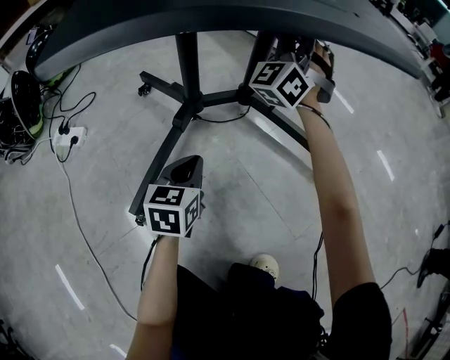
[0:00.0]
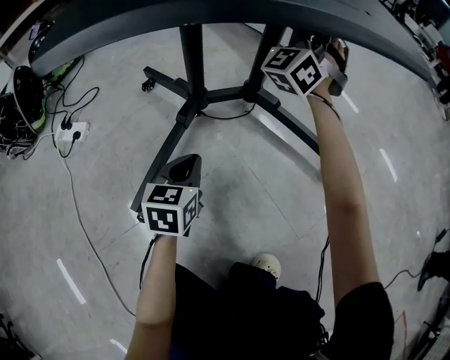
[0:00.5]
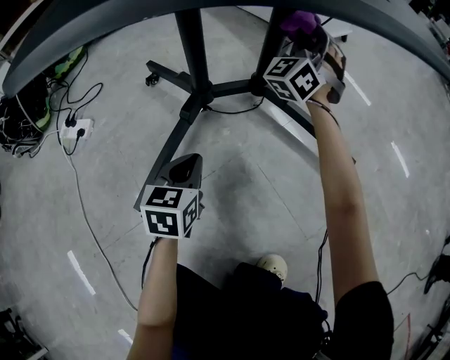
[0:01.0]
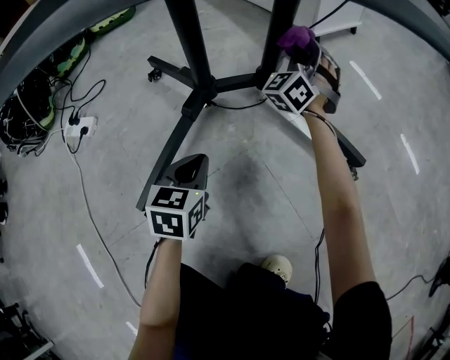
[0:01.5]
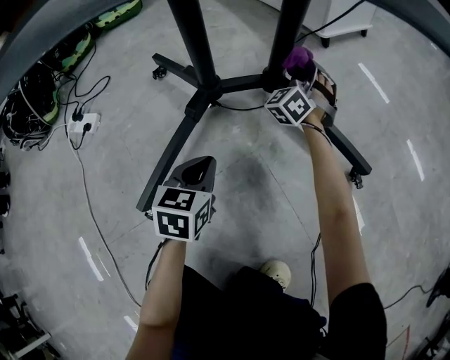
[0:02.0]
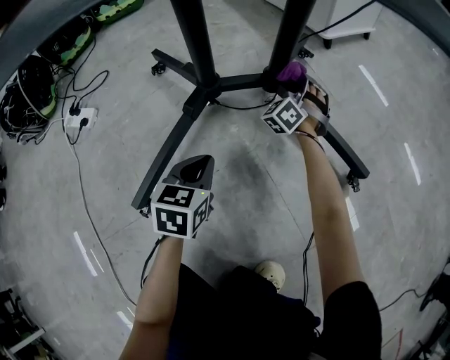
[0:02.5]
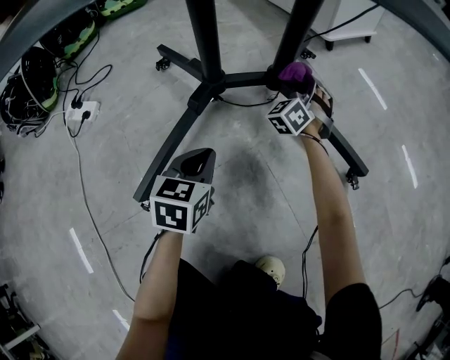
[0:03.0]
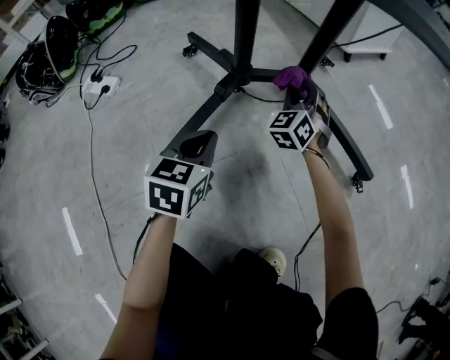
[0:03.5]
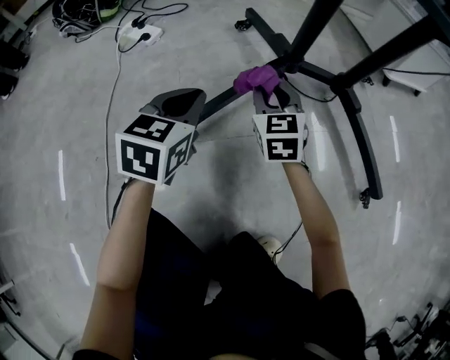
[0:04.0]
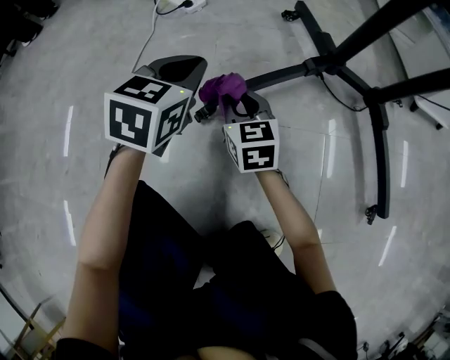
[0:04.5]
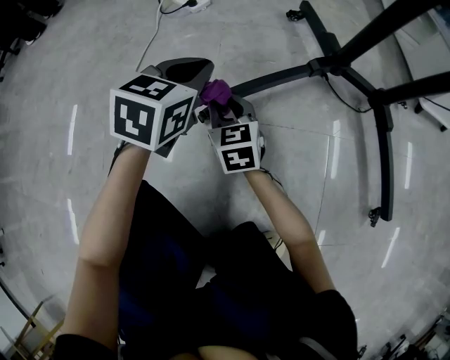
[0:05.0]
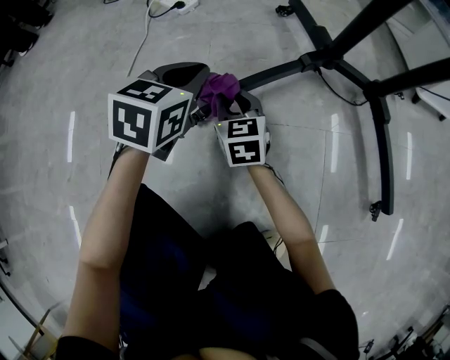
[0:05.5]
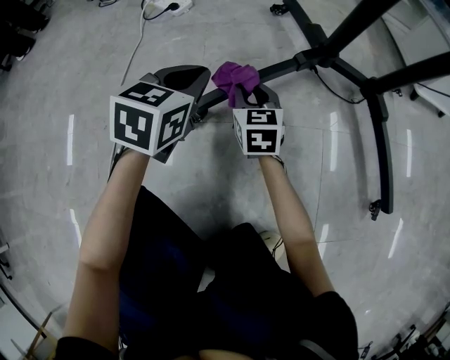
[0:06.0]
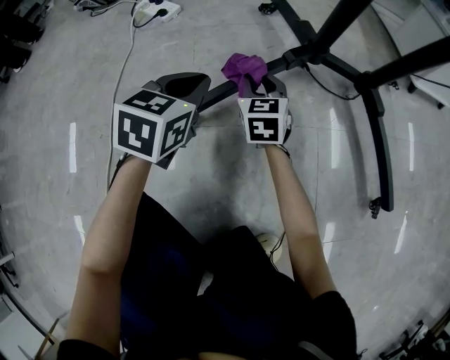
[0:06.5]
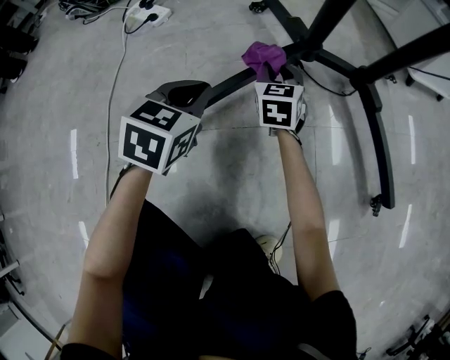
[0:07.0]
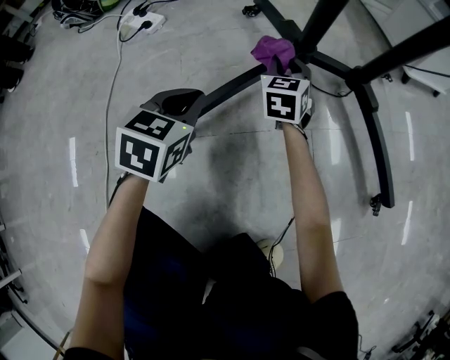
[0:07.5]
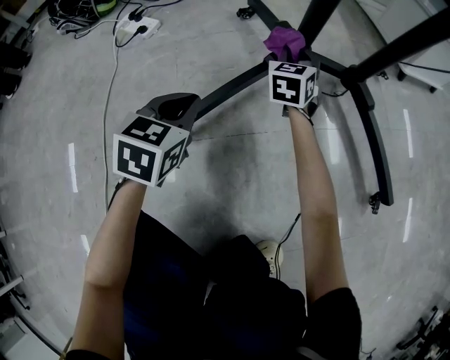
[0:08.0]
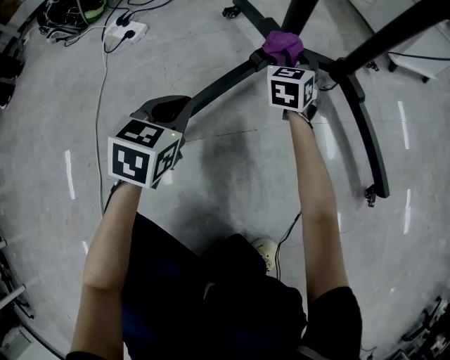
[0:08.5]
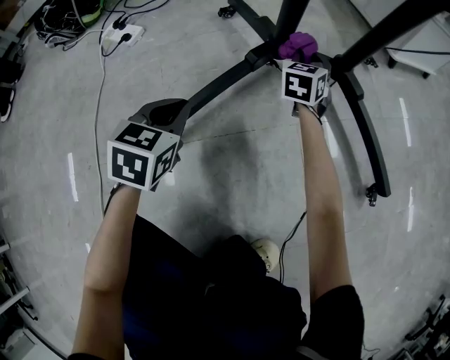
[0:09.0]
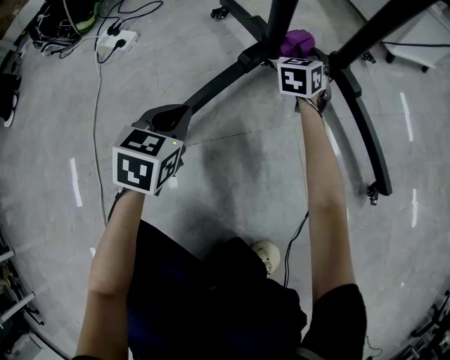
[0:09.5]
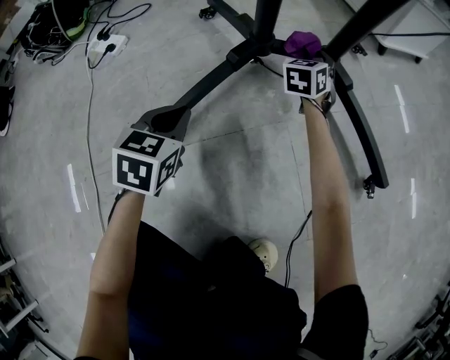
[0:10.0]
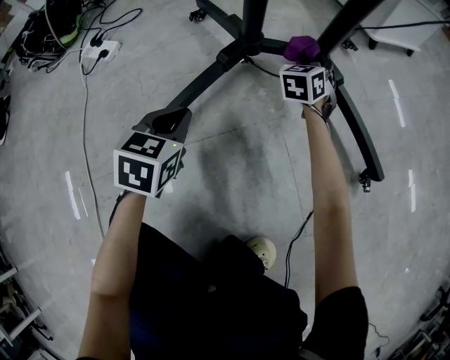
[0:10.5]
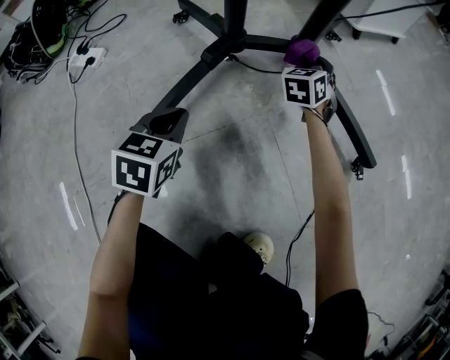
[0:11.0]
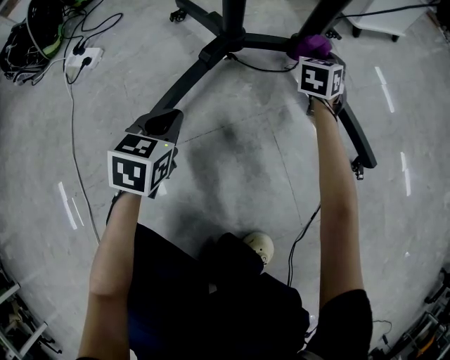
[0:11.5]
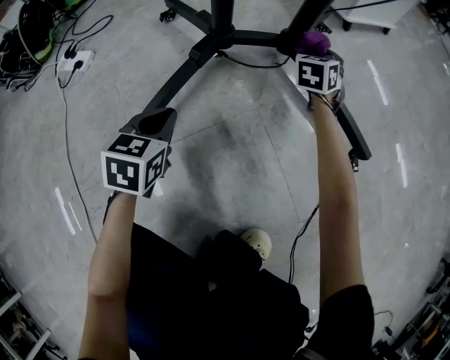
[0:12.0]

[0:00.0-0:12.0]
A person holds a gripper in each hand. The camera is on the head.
0:00.0 to 0:02.0: The right gripper moves downward, about 25 cm, and turns by roughly 20 degrees, while the left gripper moves downward, about 5 cm.
0:02.0 to 0:04.0: The right gripper moves about 40 cm, and rotates approximately 70 degrees, while the left gripper moves some 20 cm.
0:04.0 to 0:06.0: The right gripper shifts about 15 cm to the left and downward.
0:06.0 to 0:08.0: The left gripper shifts about 5 cm to the right; the right gripper shifts approximately 25 cm forward and to the right, and changes its angle by roughly 30 degrees.
0:08.0 to 0:10.0: The right gripper is displaced to the right and forward by some 15 cm, while the left gripper heads to the right, covering some 5 cm.
0:10.0 to 0:12.0: The right gripper shifts about 15 cm to the right.

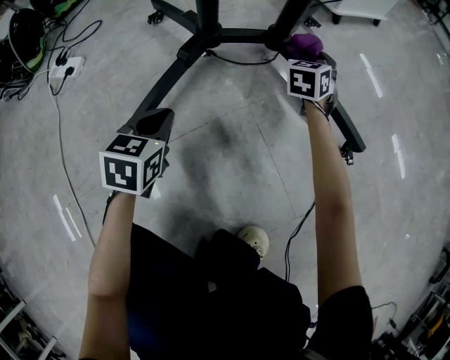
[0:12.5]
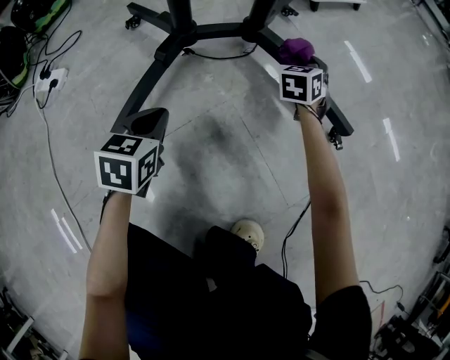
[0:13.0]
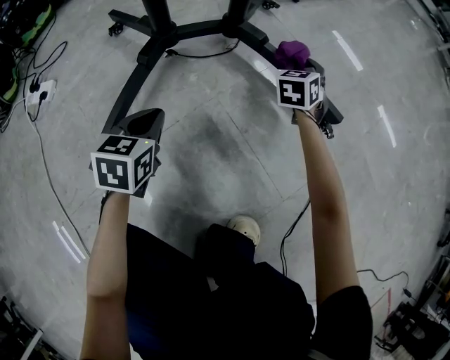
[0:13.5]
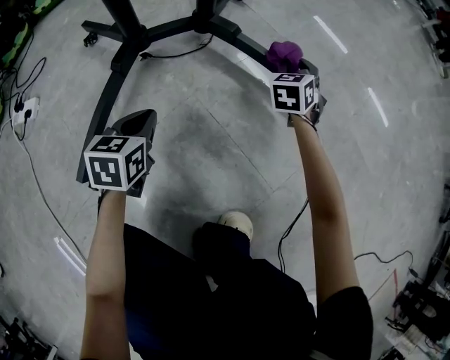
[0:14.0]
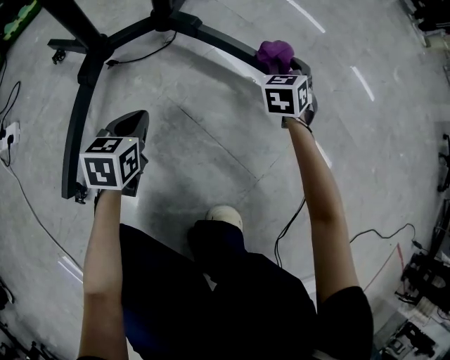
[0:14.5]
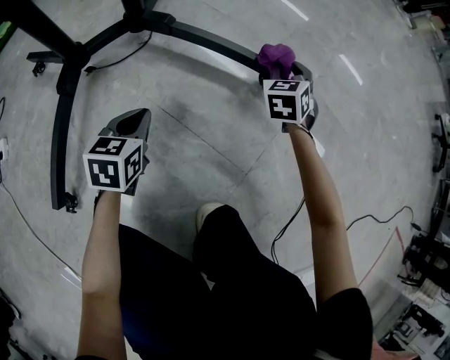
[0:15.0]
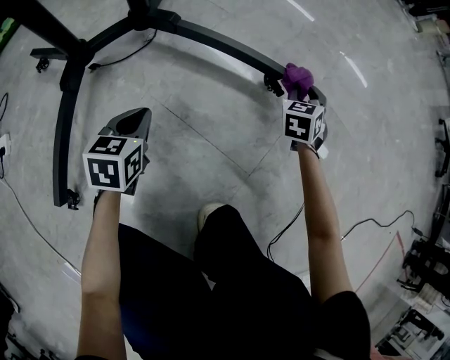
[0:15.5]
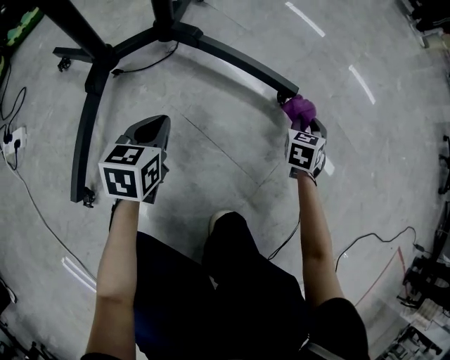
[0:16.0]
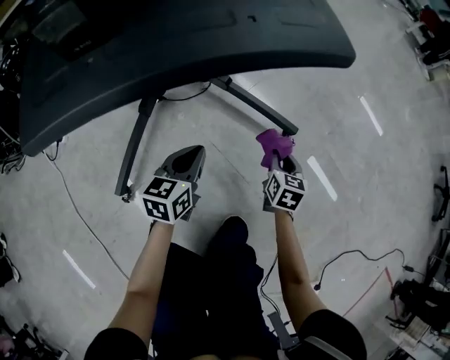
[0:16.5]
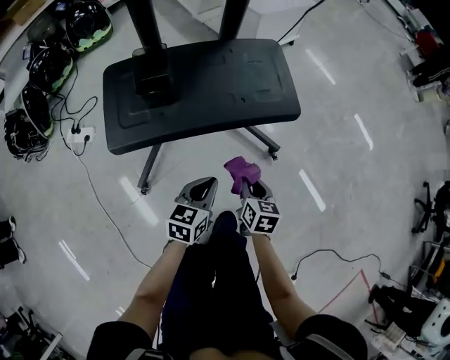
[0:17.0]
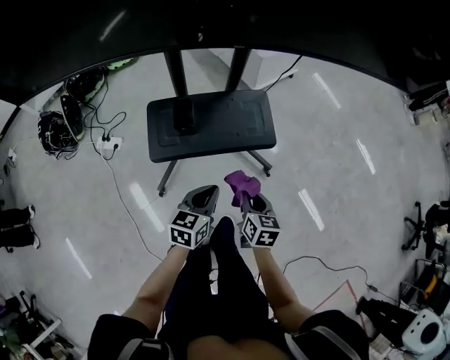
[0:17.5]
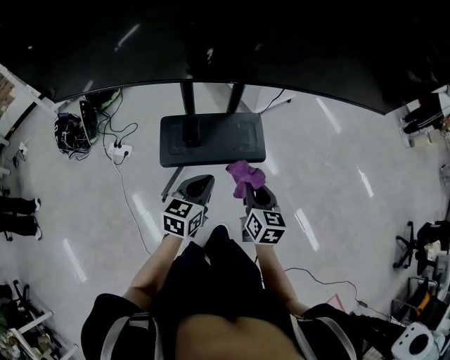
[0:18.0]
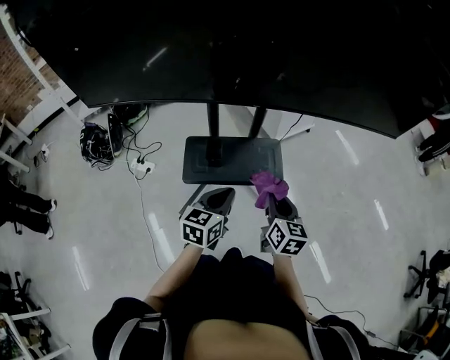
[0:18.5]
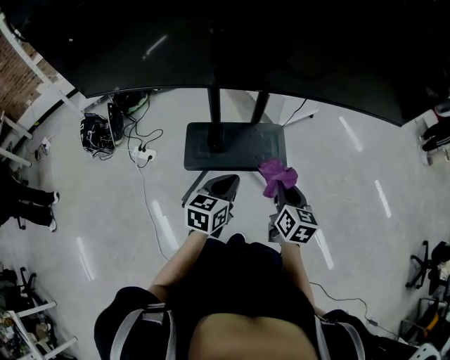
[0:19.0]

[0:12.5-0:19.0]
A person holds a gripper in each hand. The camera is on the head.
0:12.5 to 0:14.5: The left gripper goes roughly 15 cm to the right and forward; the right gripper goes roughly 25 cm to the right.
0:14.5 to 0:17.0: The right gripper moves backward and upward, about 40 cm, and swivels roughly 40 degrees; the left gripper heads upward, covering about 35 cm.
0:17.0 to 0:19.0: The two grippers go approximately 40 cm upward. The right gripper turns by approximately 20 degrees.

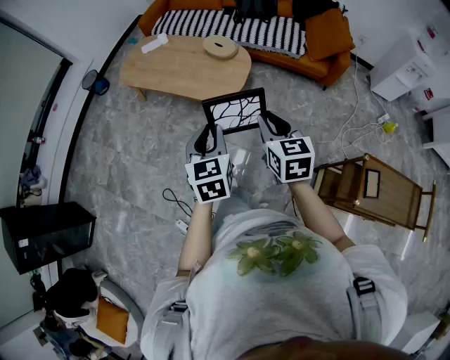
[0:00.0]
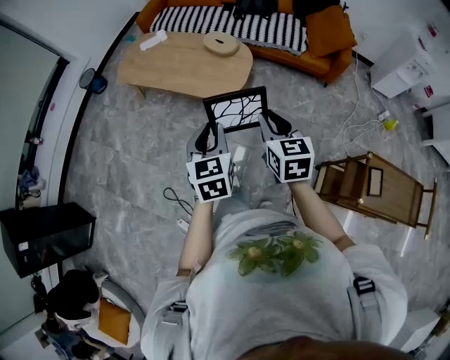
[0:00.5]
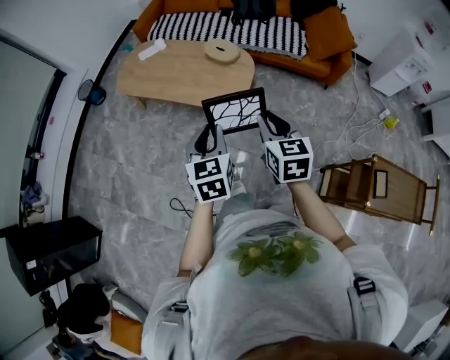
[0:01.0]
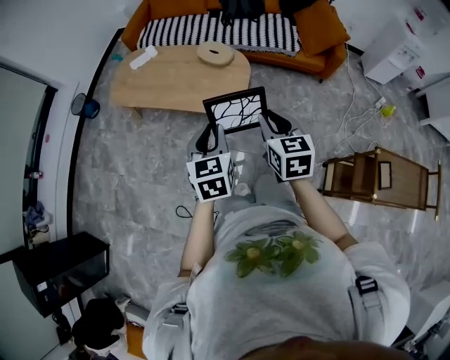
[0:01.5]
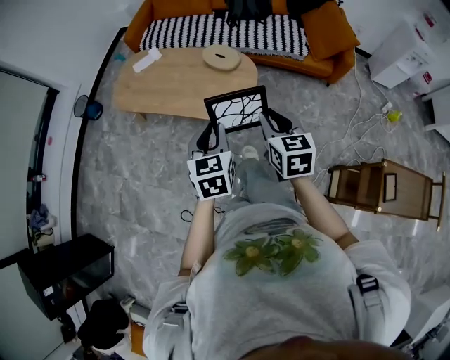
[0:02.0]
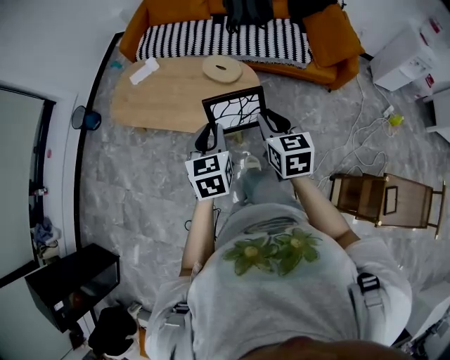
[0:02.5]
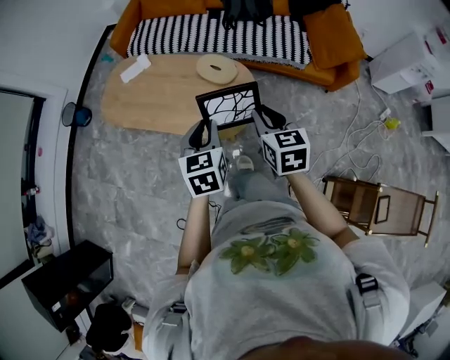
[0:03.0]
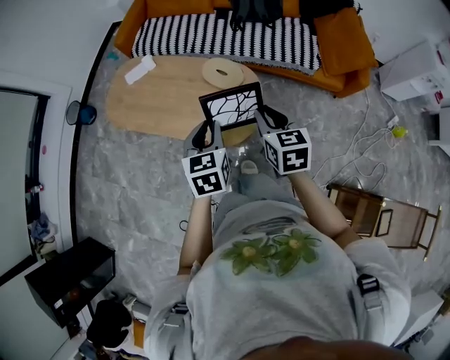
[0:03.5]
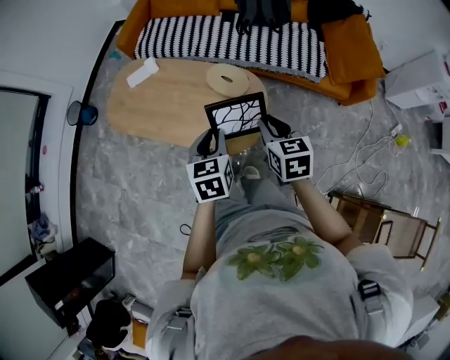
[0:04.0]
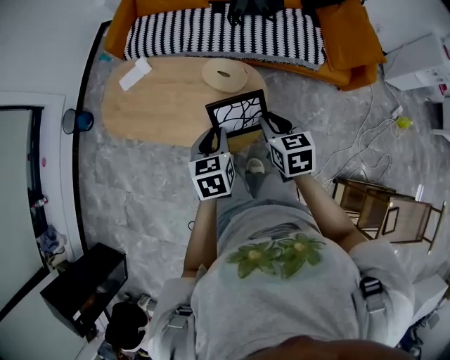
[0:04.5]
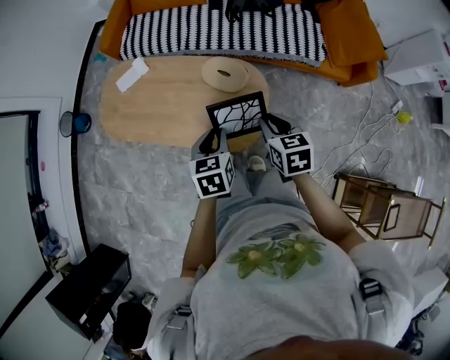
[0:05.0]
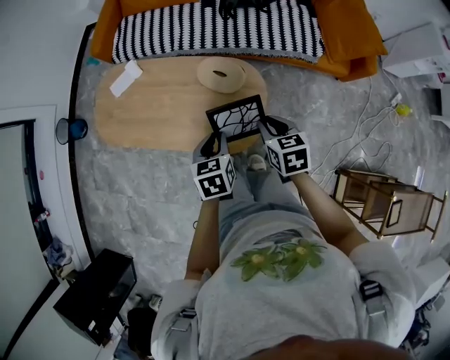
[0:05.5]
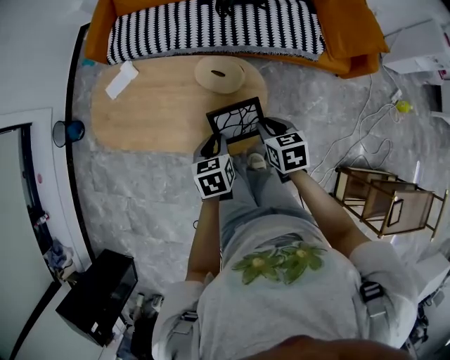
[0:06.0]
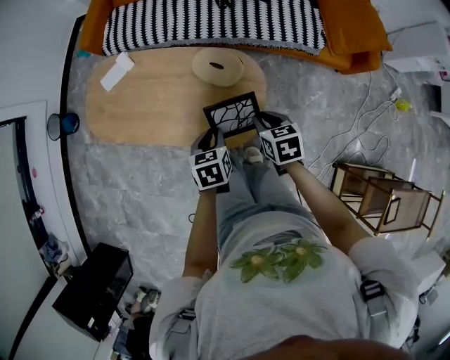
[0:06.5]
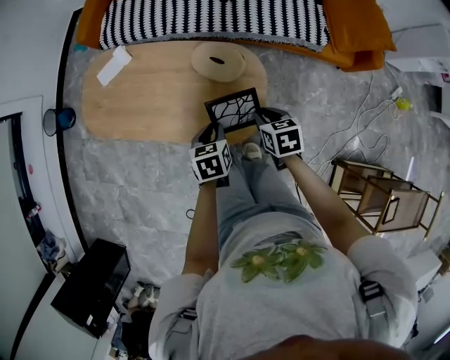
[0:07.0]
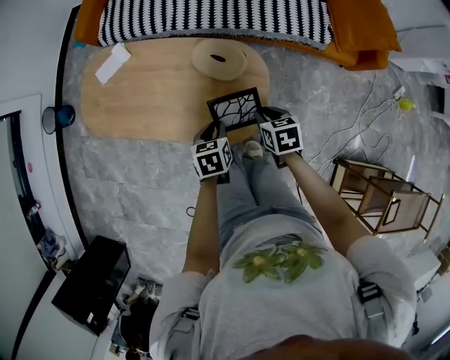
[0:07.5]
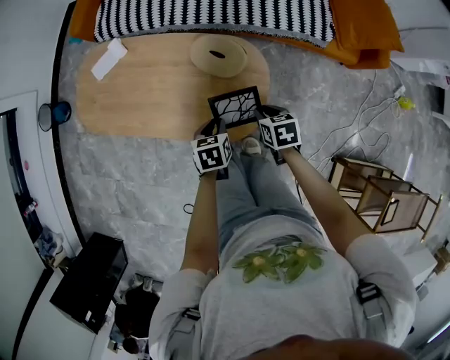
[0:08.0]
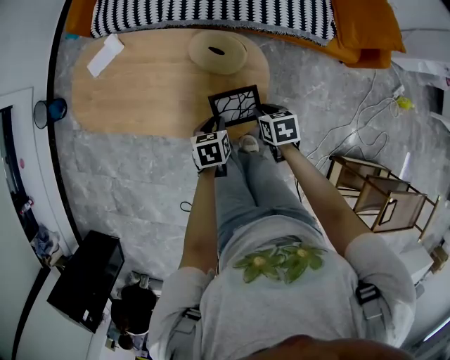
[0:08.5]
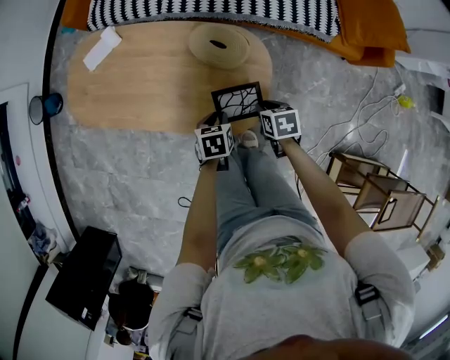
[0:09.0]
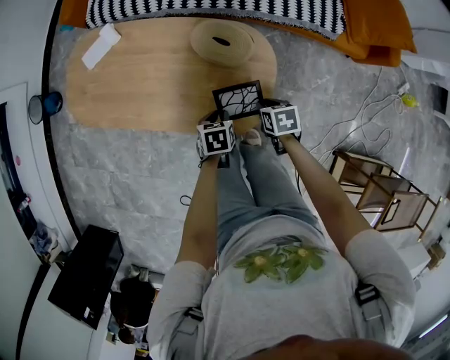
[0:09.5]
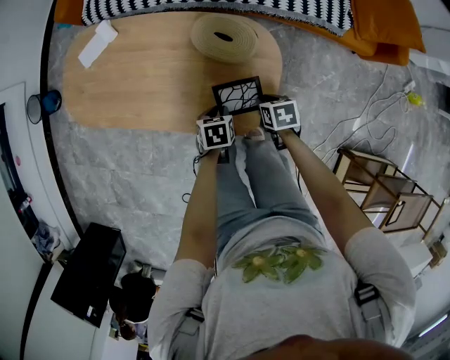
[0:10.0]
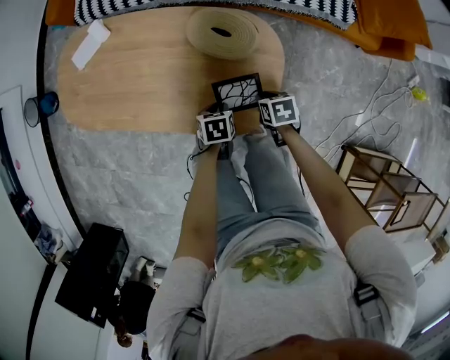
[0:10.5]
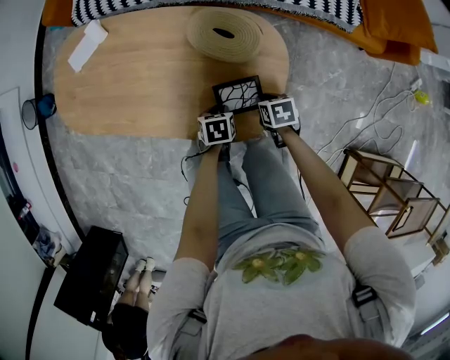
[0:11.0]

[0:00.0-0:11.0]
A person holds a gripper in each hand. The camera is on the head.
0:00.0 to 0:02.0: The left gripper shifts roughly 15 cm forward, while the right gripper is displaced forward and to the left by some 15 cm.
0:02.0 to 0:03.5: The grippers both shift forward by roughly 20 cm.
0:03.5 to 0:05.5: The grippers both shift downward and forward by about 15 cm.
0:05.5 to 0:07.5: Both grippers travel together downward, about 10 cm.
0:07.5 to 0:09.0: The two grippers go approximately 10 cm downward.
0:09.0 to 0:11.0: Both grippers travel together downward, about 15 cm.
